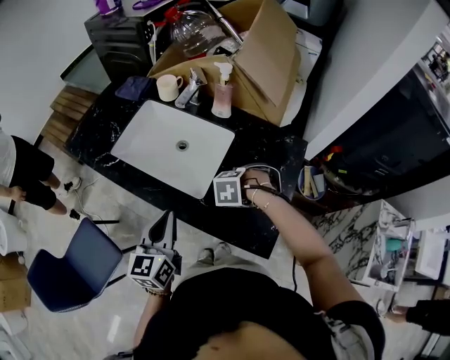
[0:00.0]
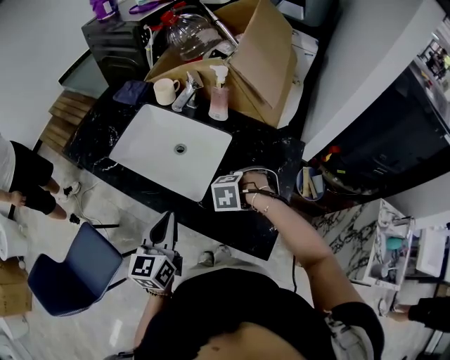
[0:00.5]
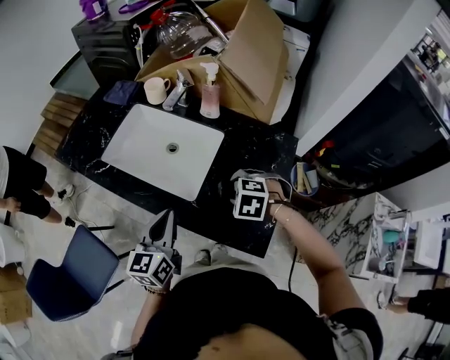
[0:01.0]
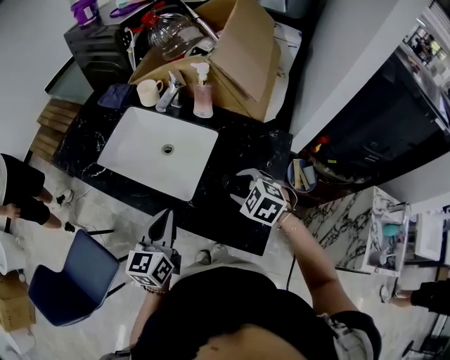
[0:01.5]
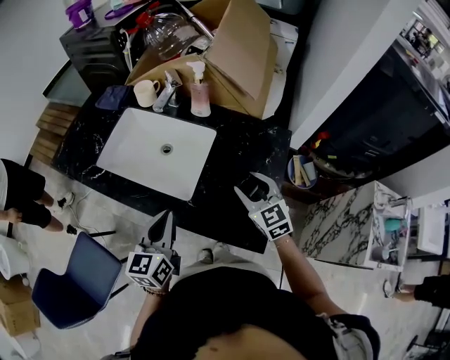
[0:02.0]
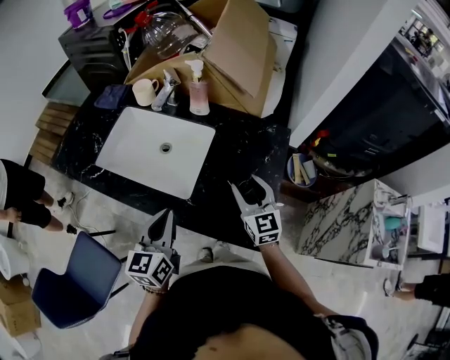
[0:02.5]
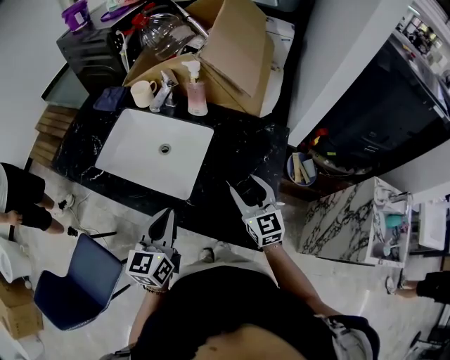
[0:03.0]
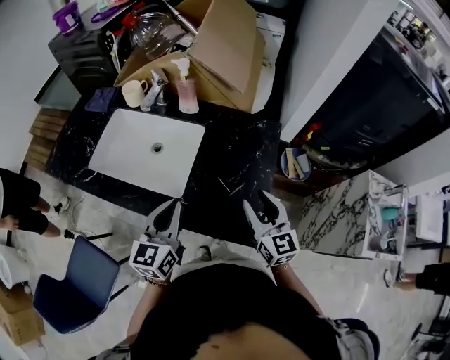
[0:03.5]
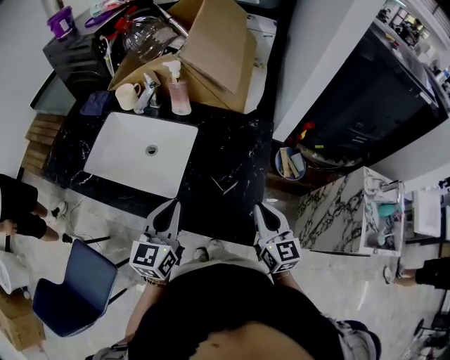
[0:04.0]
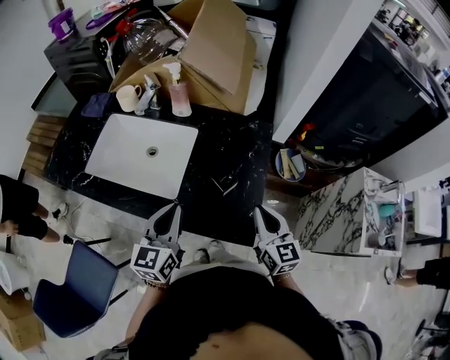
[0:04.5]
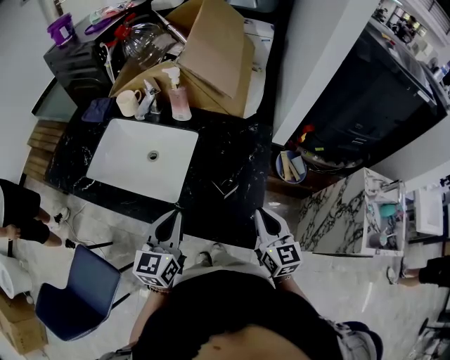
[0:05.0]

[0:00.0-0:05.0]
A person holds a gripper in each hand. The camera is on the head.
0:00.0 to 0:02.5: The right gripper goes about 10 cm upward, and angles its fingers upward, by roughly 80 degrees.
0:02.5 to 0:05.0: The left gripper goes roughly 5 cm to the right. The right gripper moves backward and to the right, roughly 15 cm, and closes up.

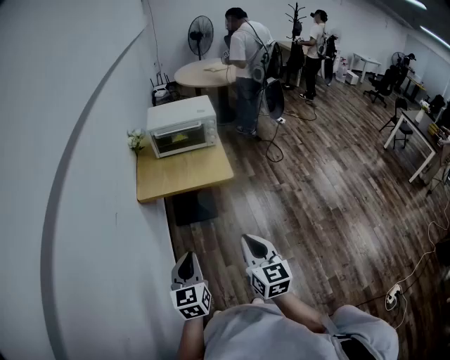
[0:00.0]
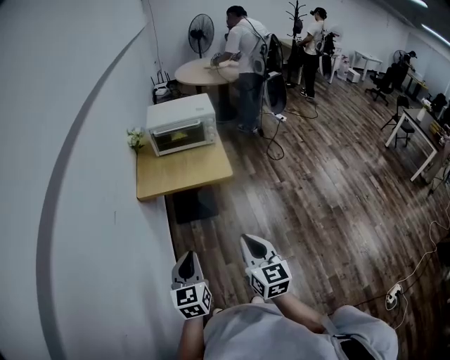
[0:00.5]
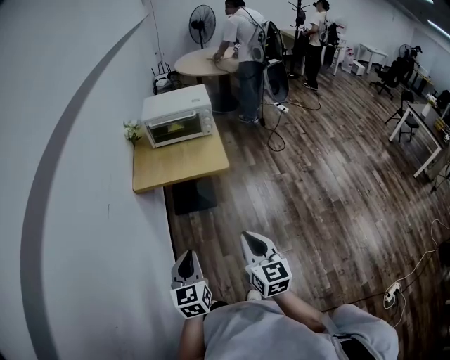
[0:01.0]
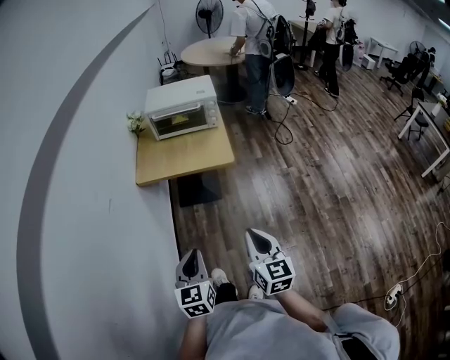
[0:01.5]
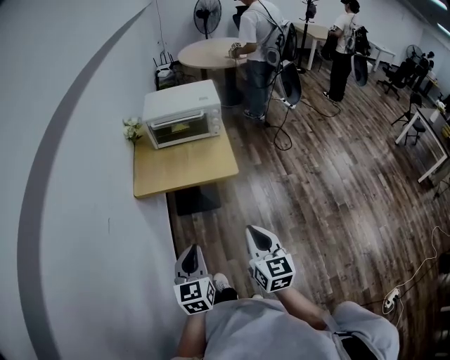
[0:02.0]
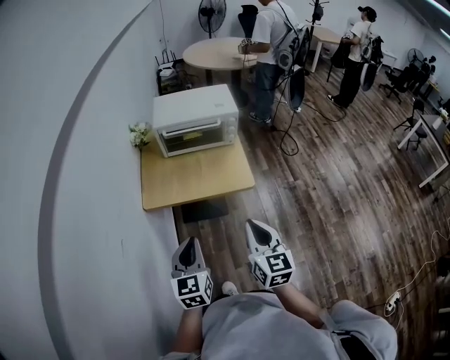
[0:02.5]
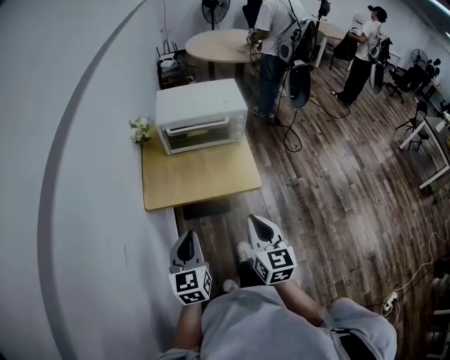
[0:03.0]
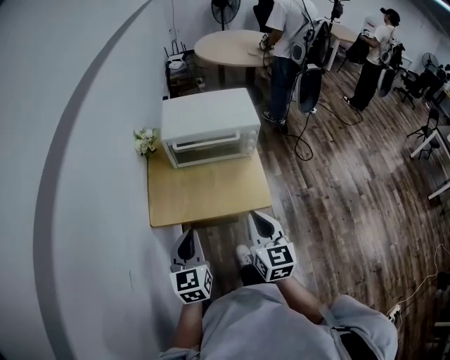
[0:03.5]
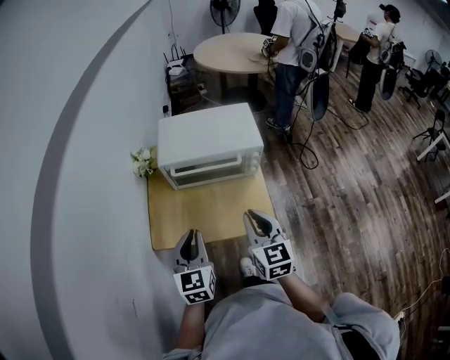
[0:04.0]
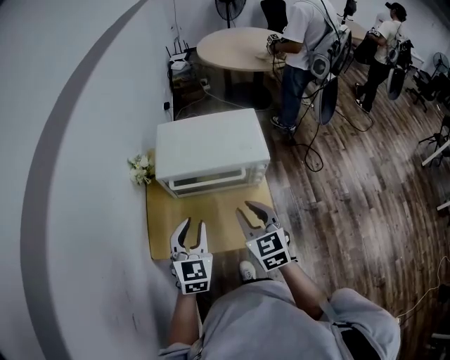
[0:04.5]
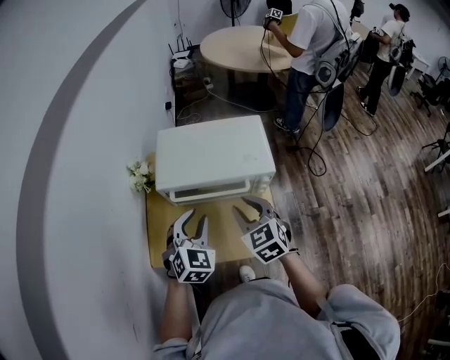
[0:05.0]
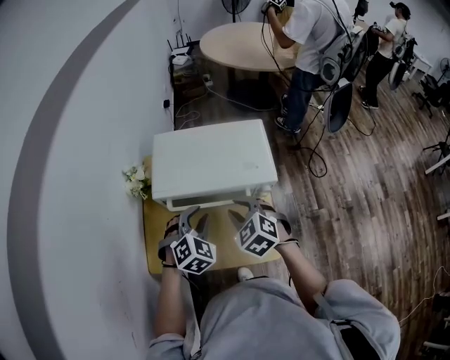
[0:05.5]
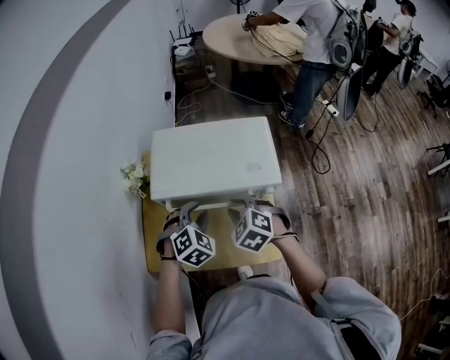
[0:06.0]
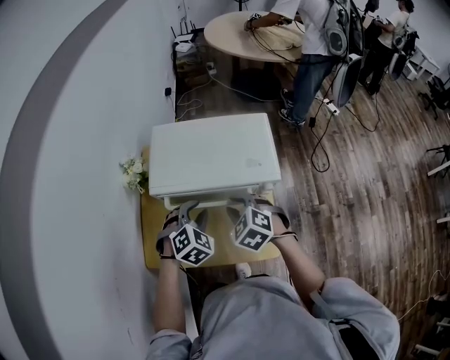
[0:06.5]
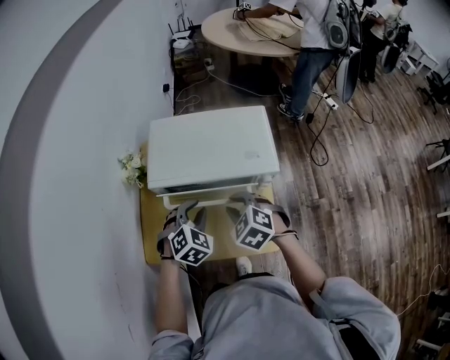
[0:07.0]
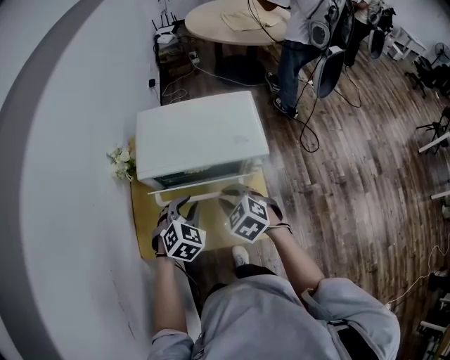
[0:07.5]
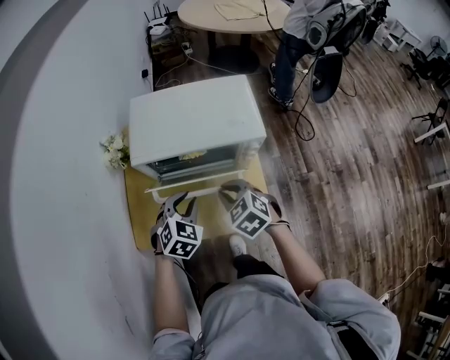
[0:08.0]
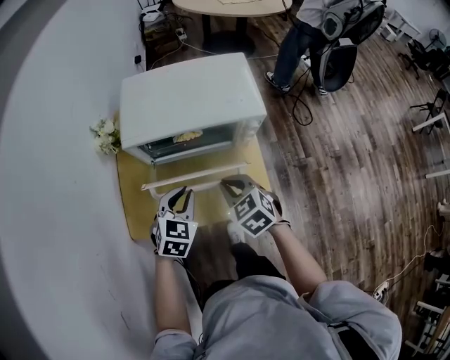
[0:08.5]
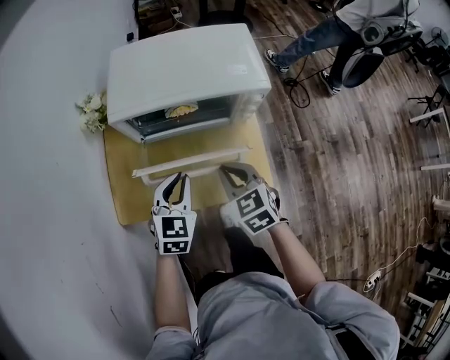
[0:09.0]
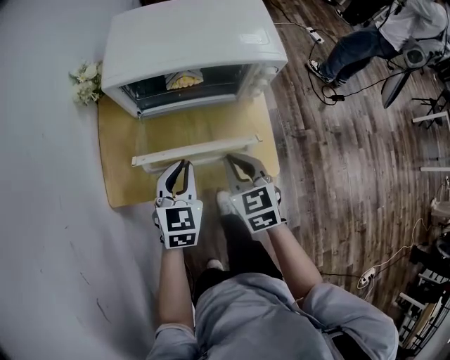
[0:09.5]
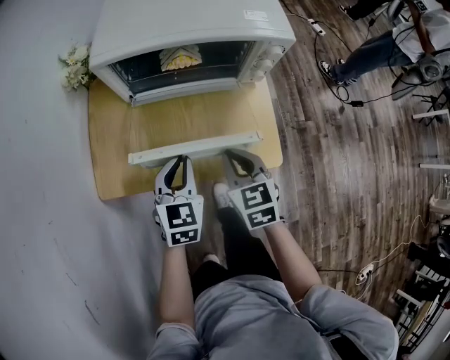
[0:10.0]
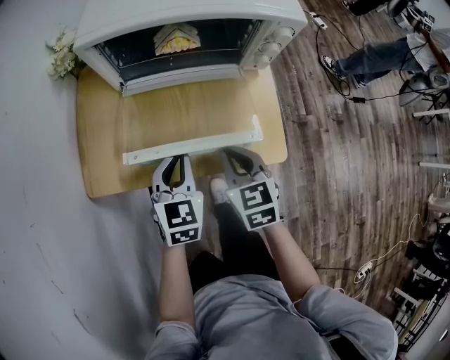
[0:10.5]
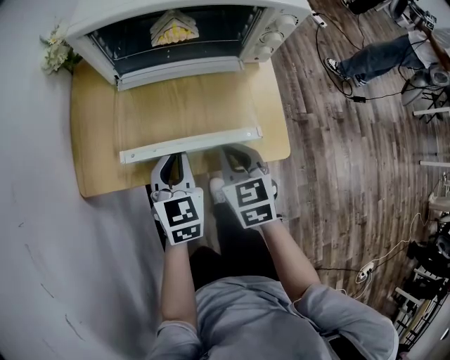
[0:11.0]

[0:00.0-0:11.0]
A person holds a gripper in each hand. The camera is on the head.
0:00.0 to 0:02.0: The grippers both shift forward by some 10 cm.
0:02.0 to 0:03.5: Both grippers travel together forward, some 25 cm.
0:03.5 to 0:05.5: The two grippers go approximately 30 cm forward. The right gripper angles its fingers downward, by about 30 degrees, and opens up. Meanwhile the left gripper rolls clockwise, seen from behind, by roughly 50 degrees, and opens.
0:05.5 to 0:07.5: The left gripper changes place by some 5 cm. Meanwhile the right gripper changes place by about 5 cm.
0:07.5 to 0:09.0: The right gripper moves backward and downward, some 10 cm, and changes its angle by about 20 degrees, while the left gripper moves backward, approximately 5 cm, and swivels roughly 30 degrees.
0:09.0 to 0:11.0: Both grippers travel together downward, about 15 cm.

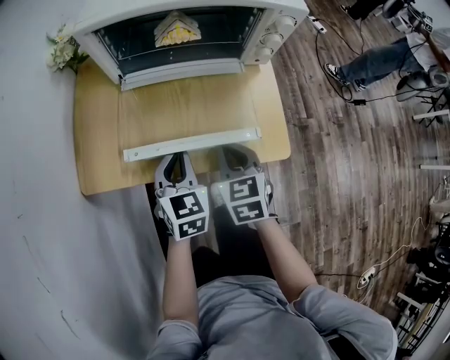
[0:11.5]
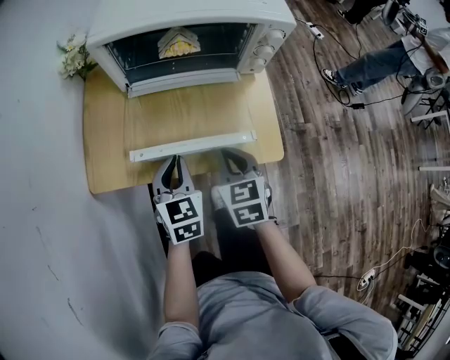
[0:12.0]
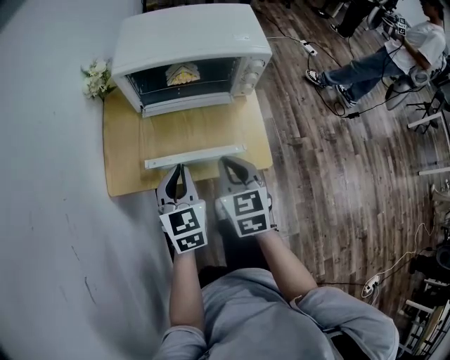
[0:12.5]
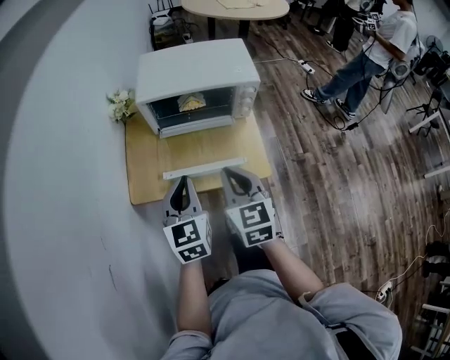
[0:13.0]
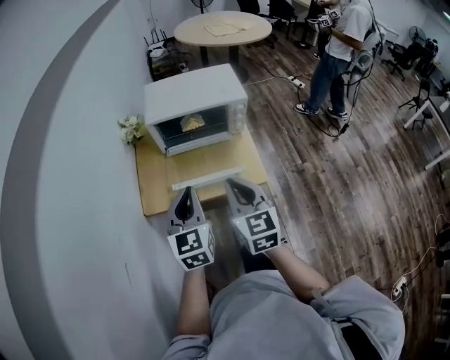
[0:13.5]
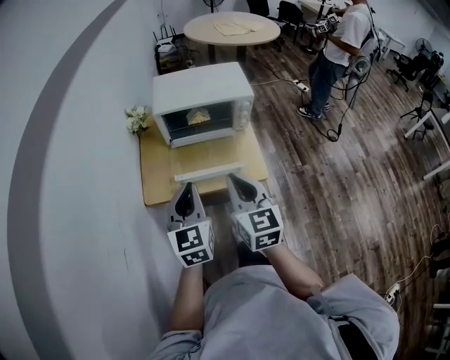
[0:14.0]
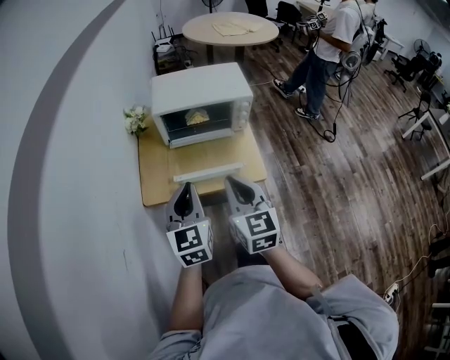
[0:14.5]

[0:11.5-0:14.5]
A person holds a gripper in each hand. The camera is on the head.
0:11.5 to 0:13.0: The two grippers go approximately 25 cm upward.
0:13.0 to 0:14.5: The right gripper heads backward and upward, covering approximately 10 cm, while the left gripper heads upward and backward, covering about 10 cm.

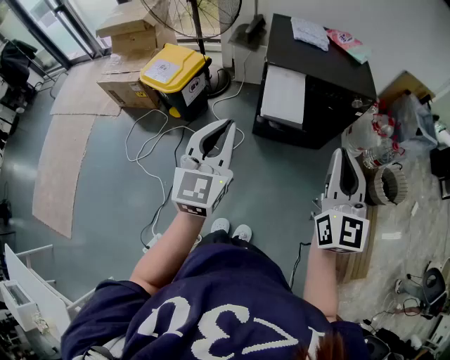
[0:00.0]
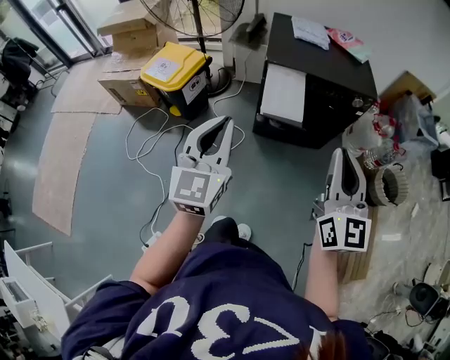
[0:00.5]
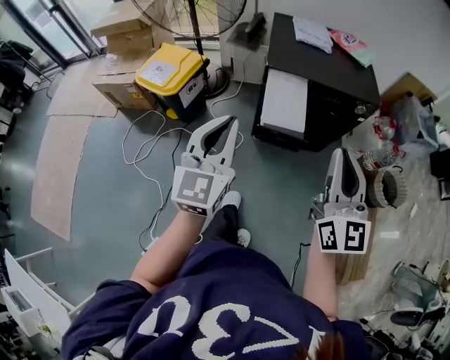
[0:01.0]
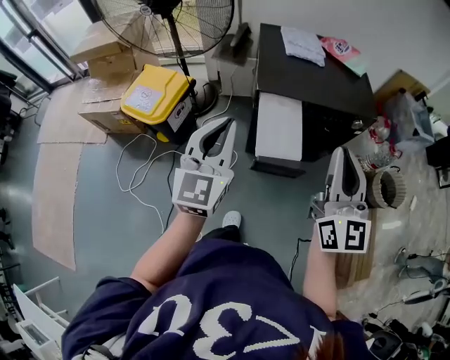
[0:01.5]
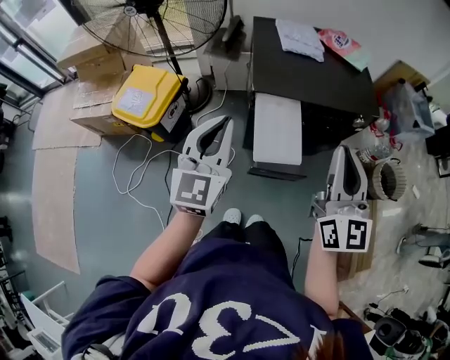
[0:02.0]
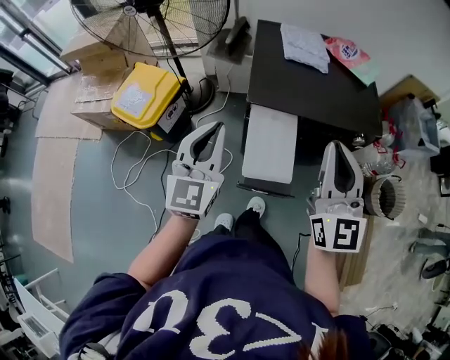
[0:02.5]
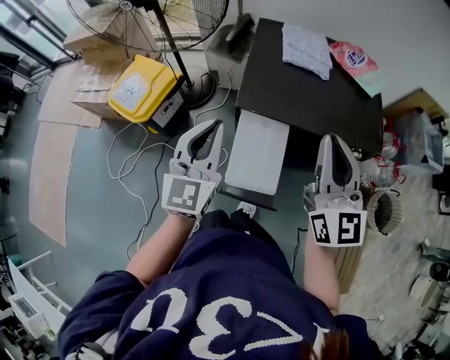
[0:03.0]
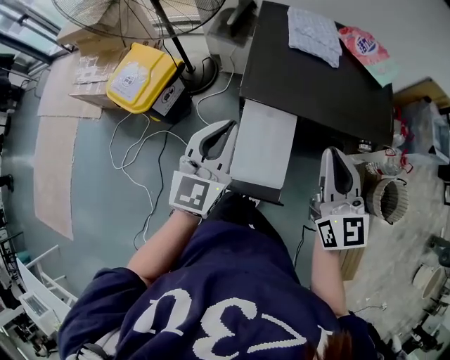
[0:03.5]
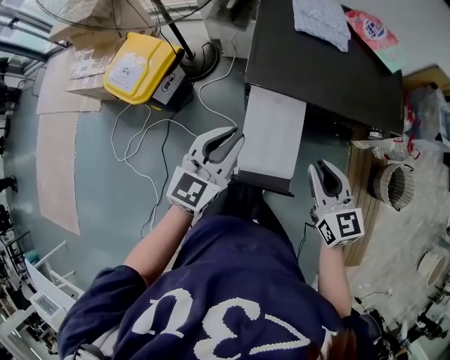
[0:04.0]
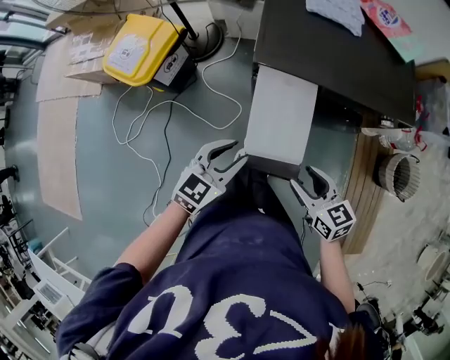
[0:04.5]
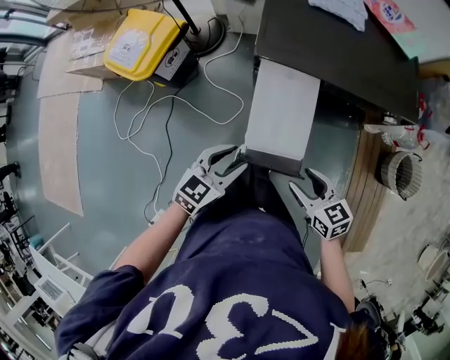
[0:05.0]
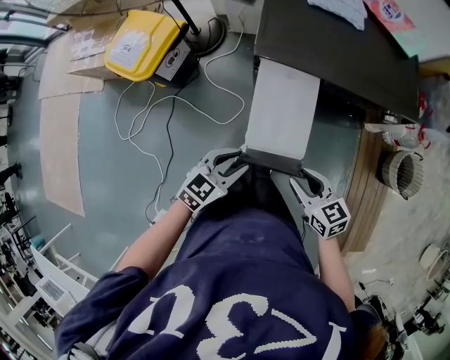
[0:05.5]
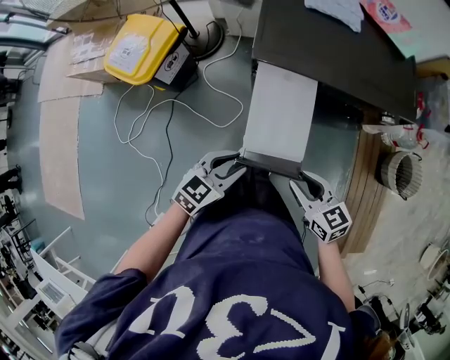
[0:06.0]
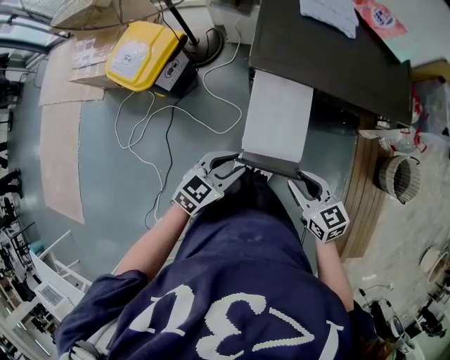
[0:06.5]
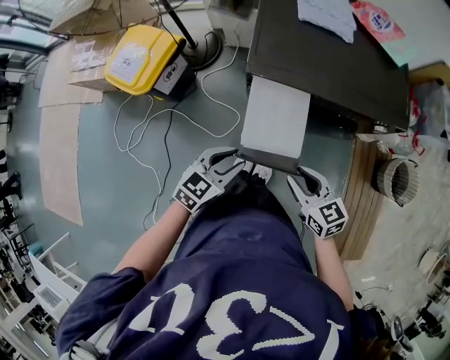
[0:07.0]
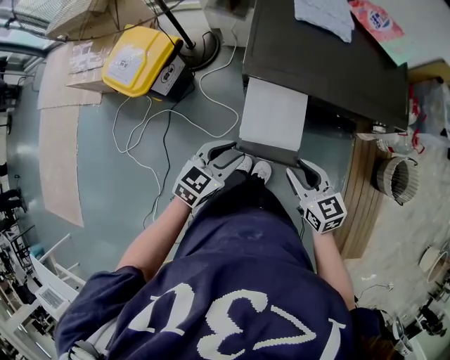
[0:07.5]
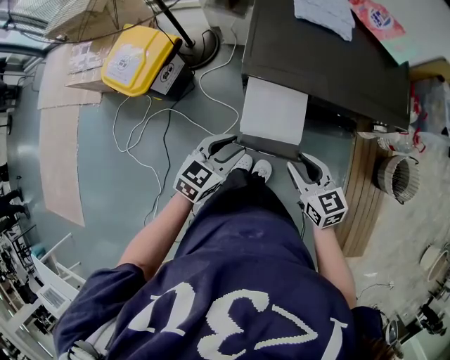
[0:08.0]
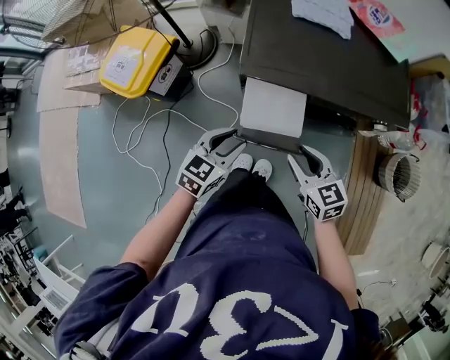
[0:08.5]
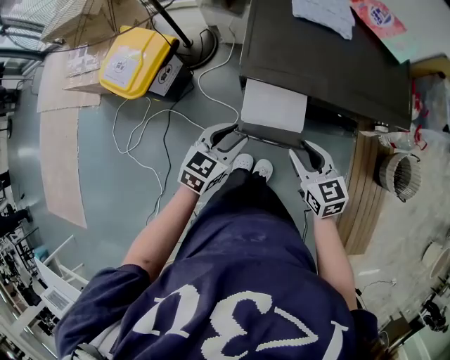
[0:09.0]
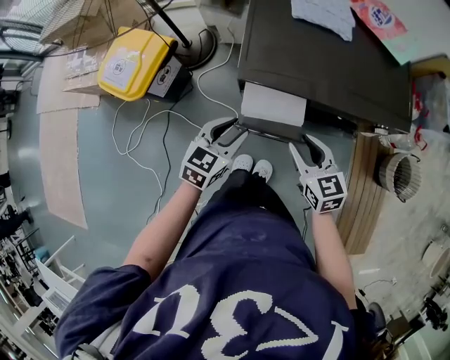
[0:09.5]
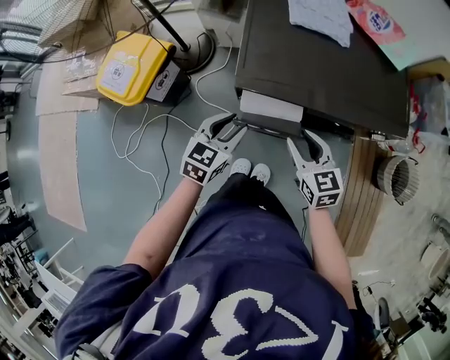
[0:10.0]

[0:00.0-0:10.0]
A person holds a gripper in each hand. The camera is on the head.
0:00.0 to 0:02.0: The grippers both shift forward by about 25 cm.
0:02.0 to 0:04.0: The right gripper is displaced downward and forward by about 25 cm, and changes its angle by about 40 degrees; the left gripper heads downward, to the right and forward, covering approximately 20 cm.
0:04.0 to 0:06.0: Both grippers travel together downward and backward, about 15 cm. The left gripper swivels about 30 degrees, and opens. The right gripper rotates approximately 20 degrees, and opens, then closes once more.
0:06.0 to 0:08.0: Both grippers move forward, some 10 cm.
0:08.0 to 0:10.0: The two grippers go about 10 cm forward.
